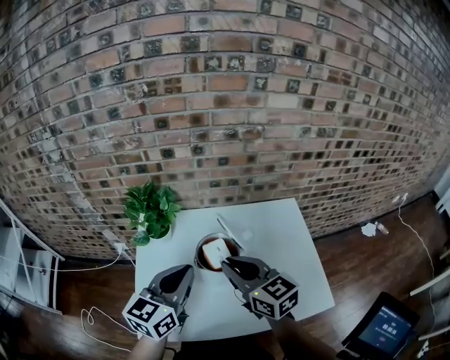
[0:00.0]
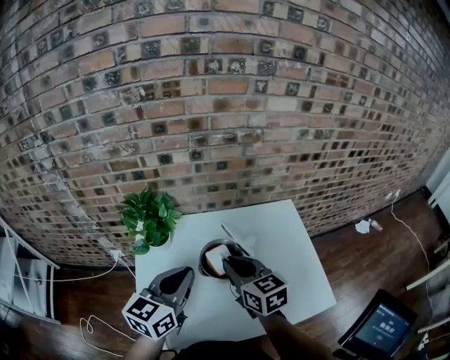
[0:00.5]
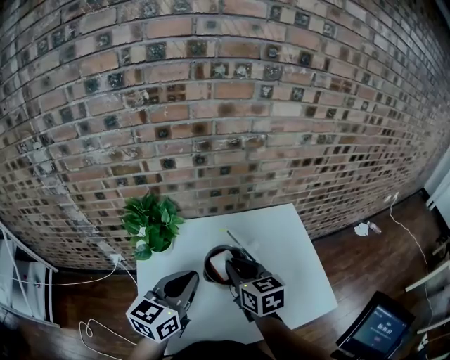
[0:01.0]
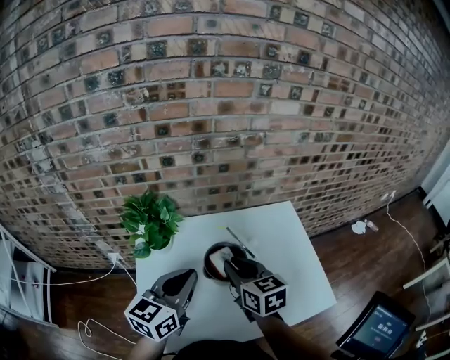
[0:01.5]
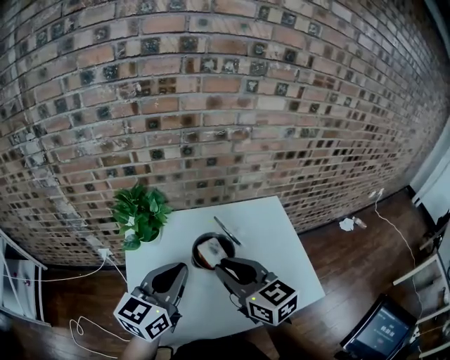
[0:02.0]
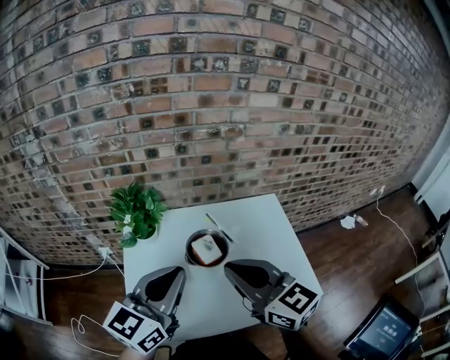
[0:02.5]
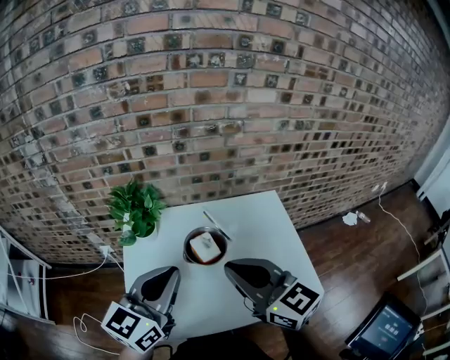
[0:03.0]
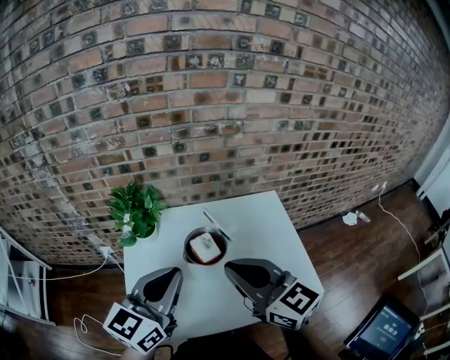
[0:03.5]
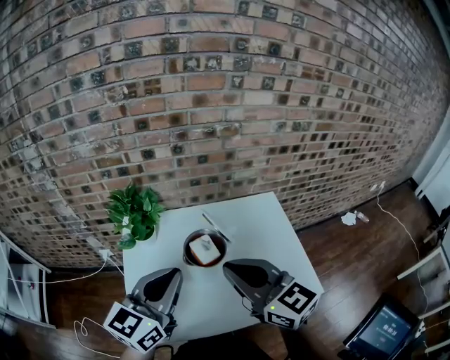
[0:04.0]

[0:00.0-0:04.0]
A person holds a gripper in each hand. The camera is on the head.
0:00.0 to 0:02.0: The right gripper moves about 5 cm forward and comes back.
0:02.0 to 0:04.0: The right gripper moves upward, approximately 5 cm. The left gripper ends up roughly 5 cm from where it was.

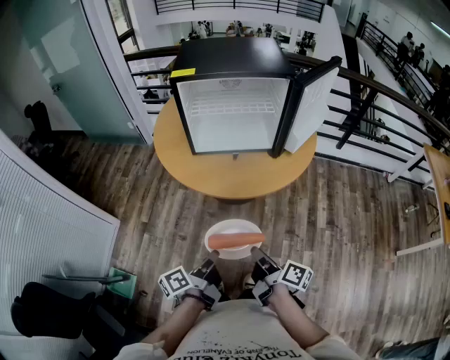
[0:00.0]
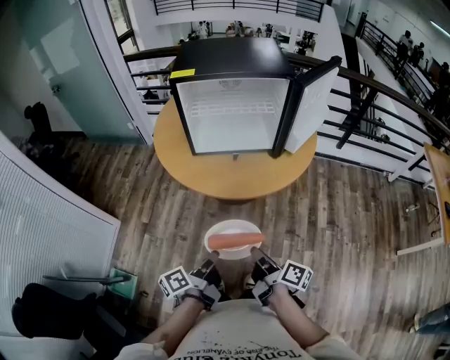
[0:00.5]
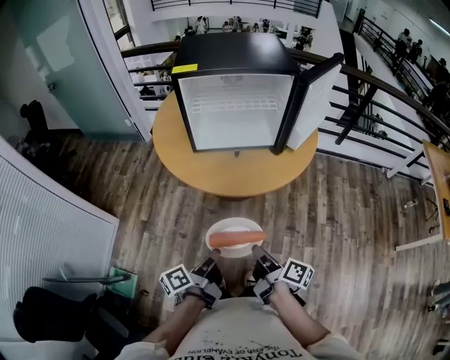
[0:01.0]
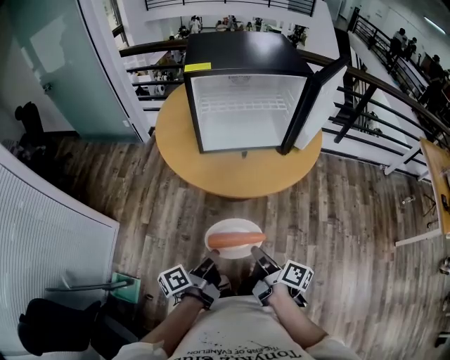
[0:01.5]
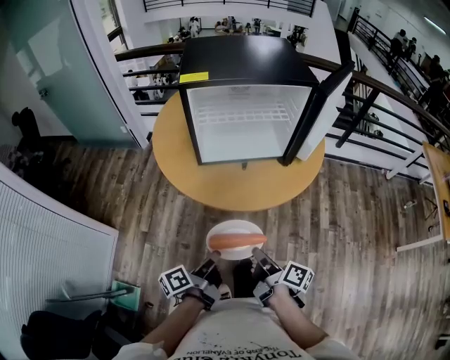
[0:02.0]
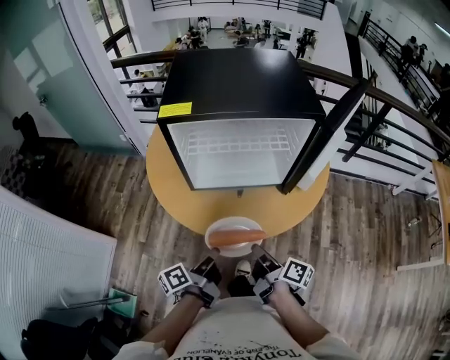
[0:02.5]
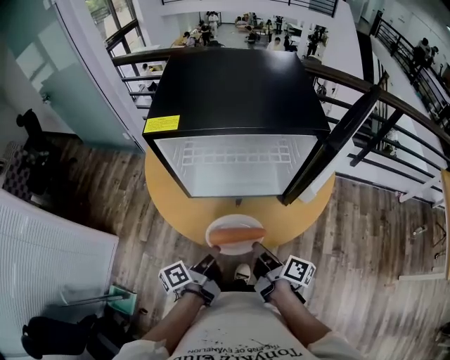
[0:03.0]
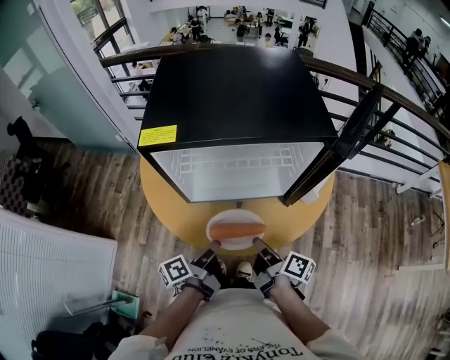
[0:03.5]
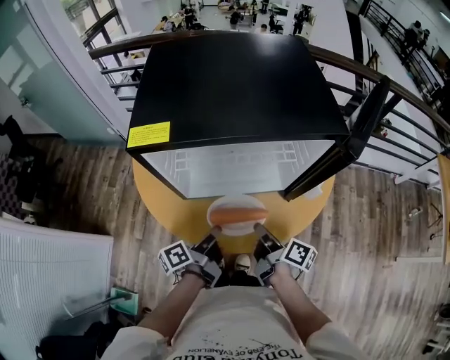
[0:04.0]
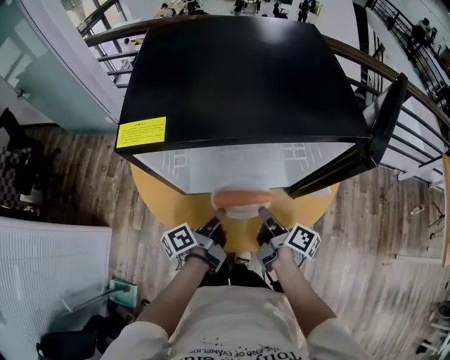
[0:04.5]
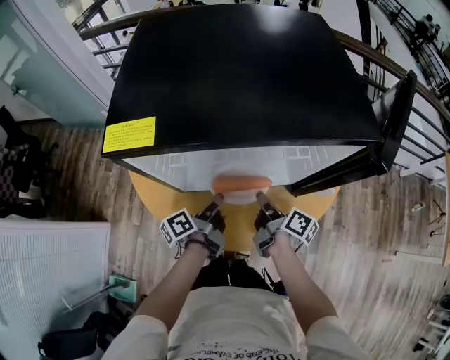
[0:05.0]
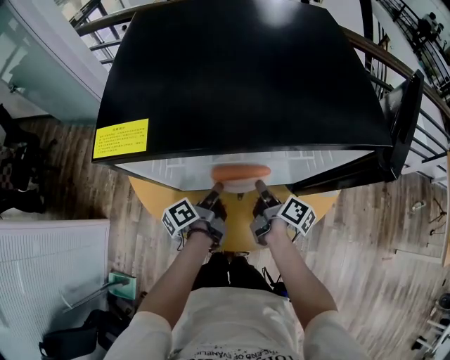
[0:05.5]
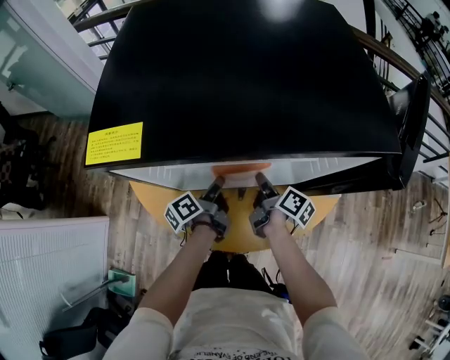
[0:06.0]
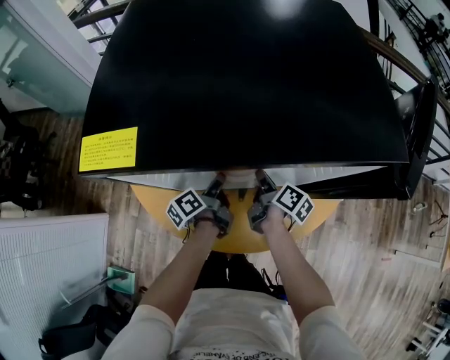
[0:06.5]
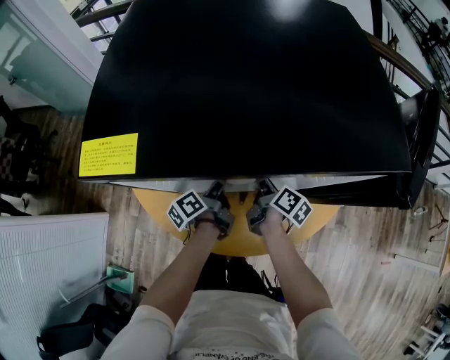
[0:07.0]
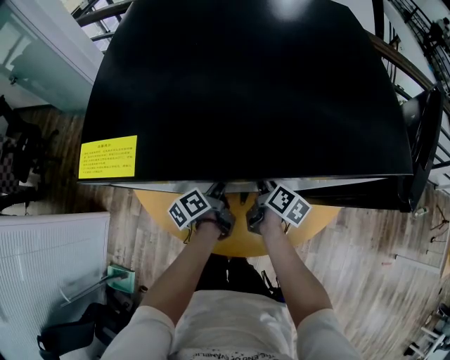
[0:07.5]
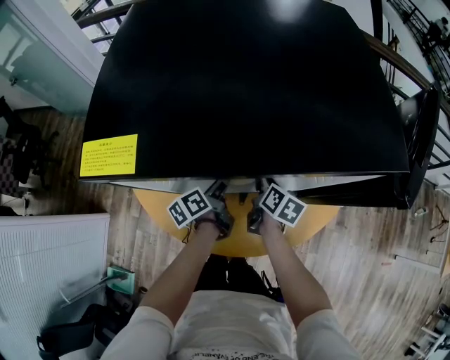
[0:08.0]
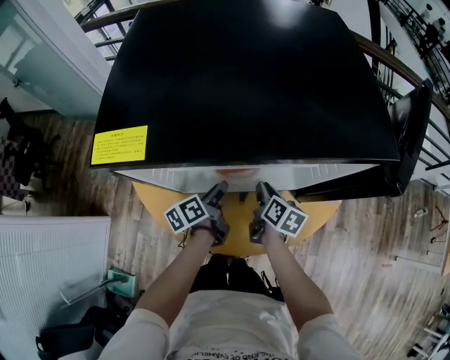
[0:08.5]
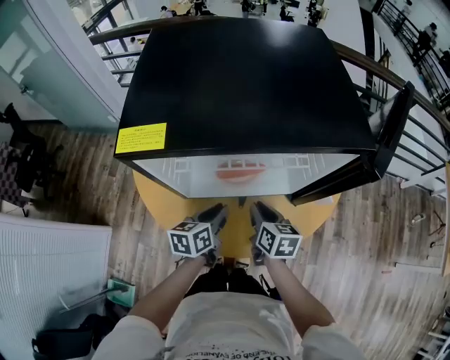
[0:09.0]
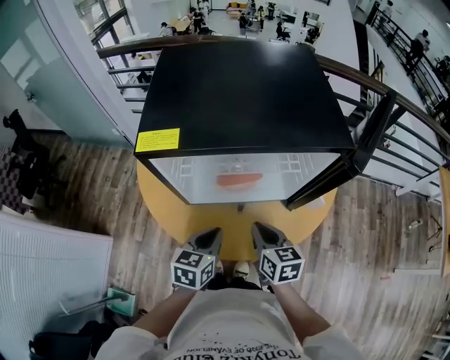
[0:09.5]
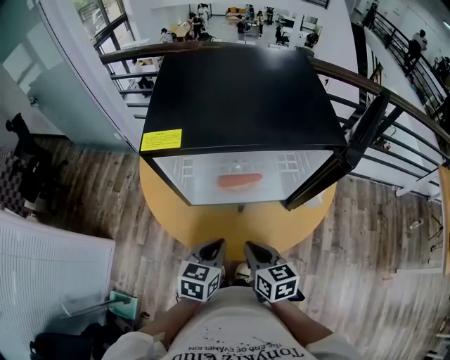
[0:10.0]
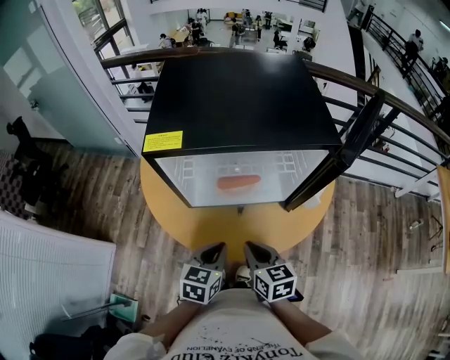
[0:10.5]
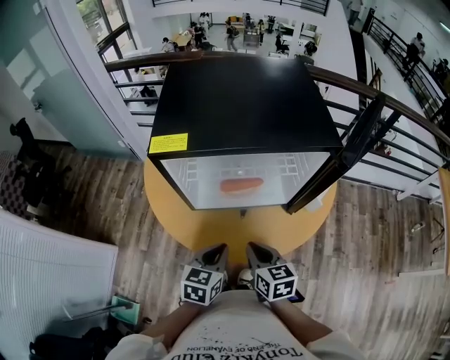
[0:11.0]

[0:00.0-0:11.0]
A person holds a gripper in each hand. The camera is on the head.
0:00.0 to 0:02.0: The right gripper moves roughly 10 cm.
0:02.0 to 0:03.5: The right gripper moves some 25 cm.
0:03.5 to 0:05.5: The right gripper moves roughly 20 cm.
0:05.5 to 0:07.5: The right gripper moves about 5 cm.
0:07.5 to 0:09.0: The right gripper ends up approximately 10 cm from where it was, and rotates about 30 degrees.
0:09.0 to 0:11.0: The right gripper changes place by some 15 cm.

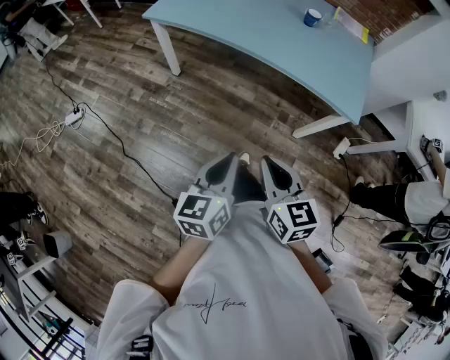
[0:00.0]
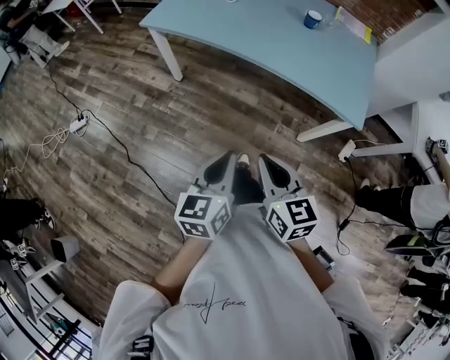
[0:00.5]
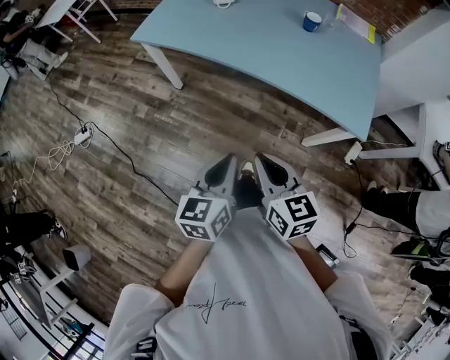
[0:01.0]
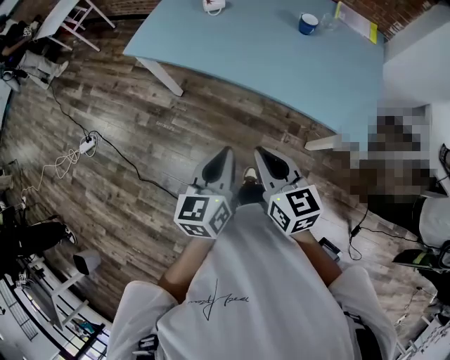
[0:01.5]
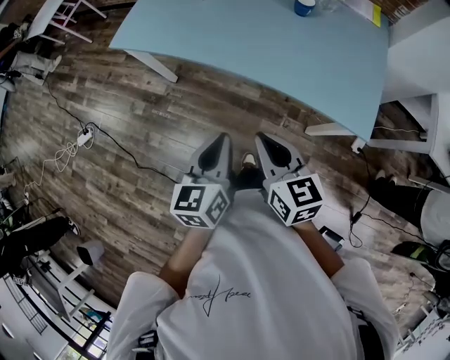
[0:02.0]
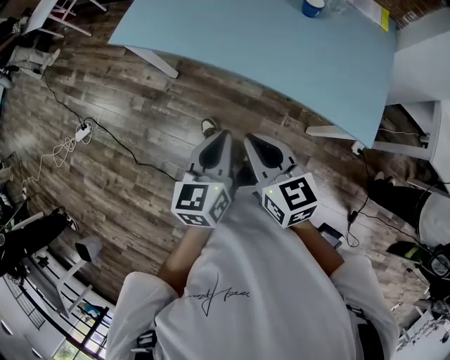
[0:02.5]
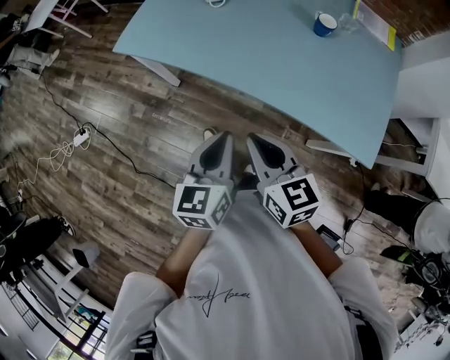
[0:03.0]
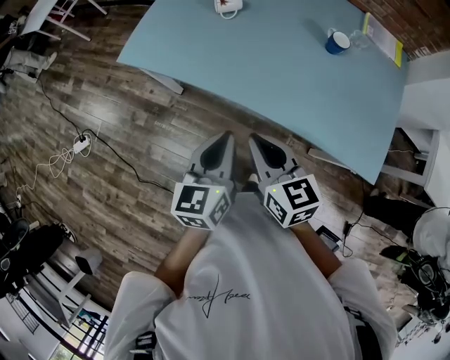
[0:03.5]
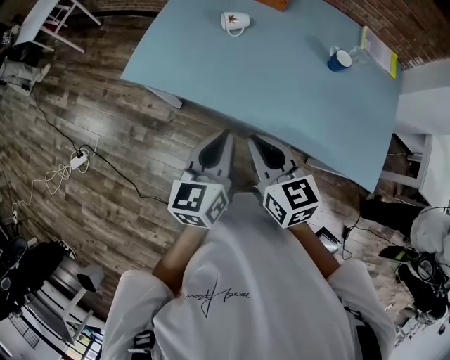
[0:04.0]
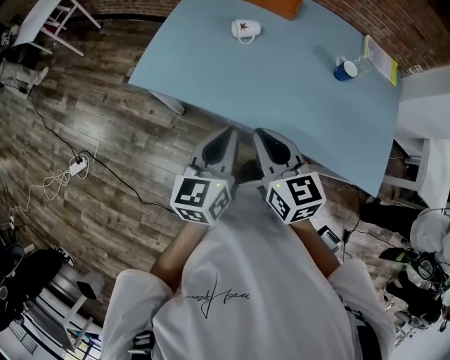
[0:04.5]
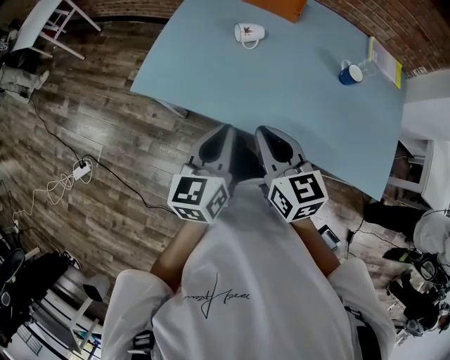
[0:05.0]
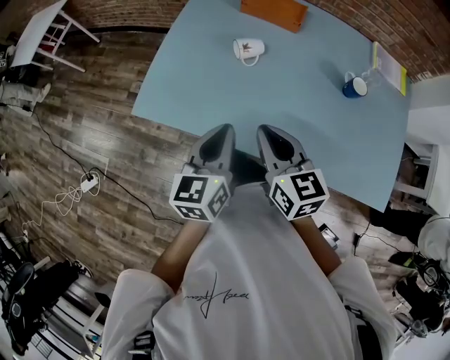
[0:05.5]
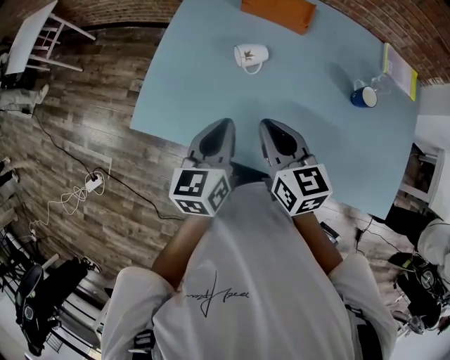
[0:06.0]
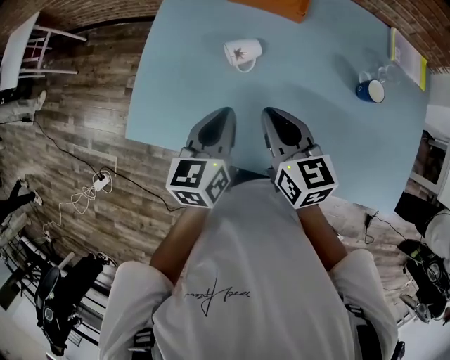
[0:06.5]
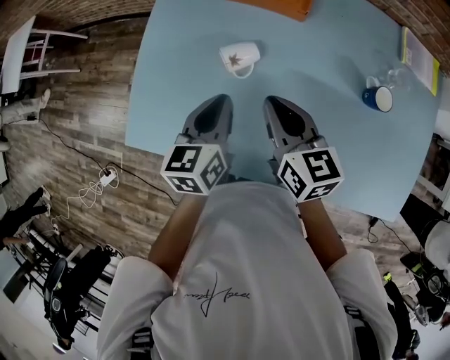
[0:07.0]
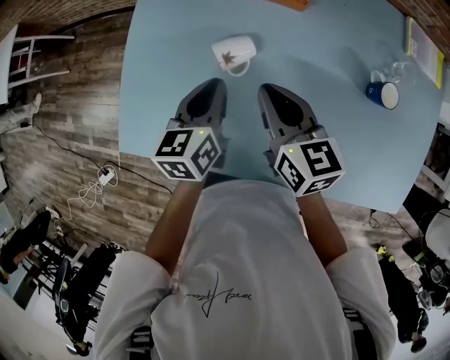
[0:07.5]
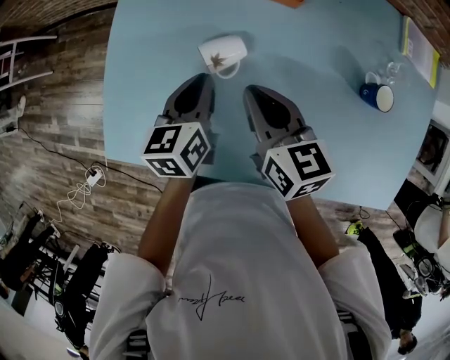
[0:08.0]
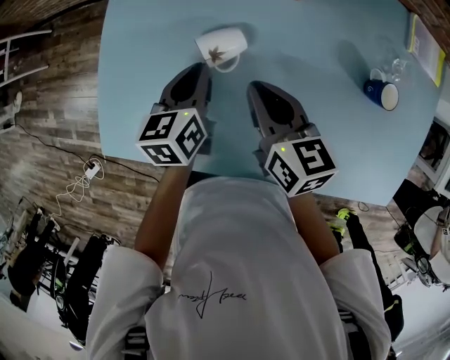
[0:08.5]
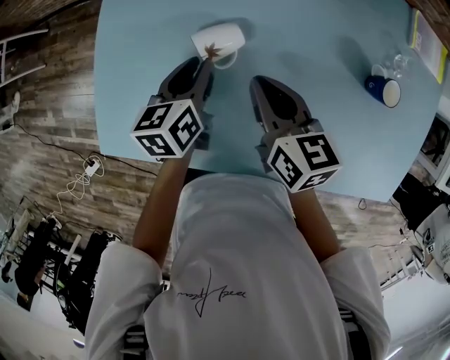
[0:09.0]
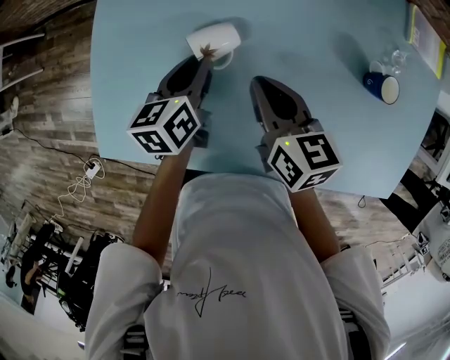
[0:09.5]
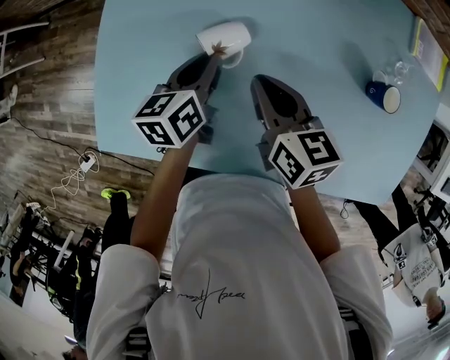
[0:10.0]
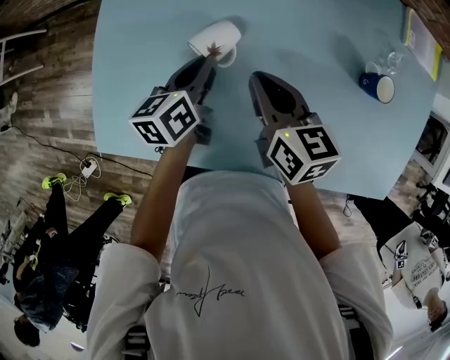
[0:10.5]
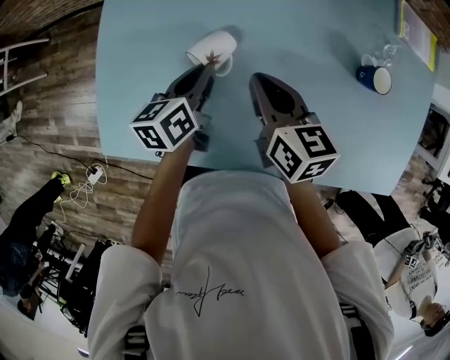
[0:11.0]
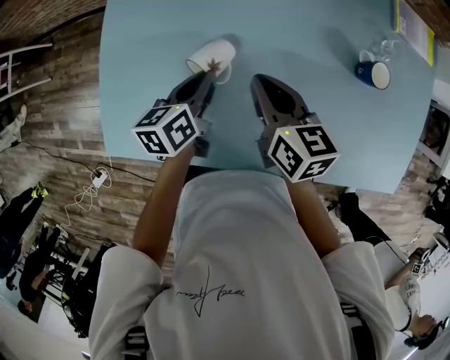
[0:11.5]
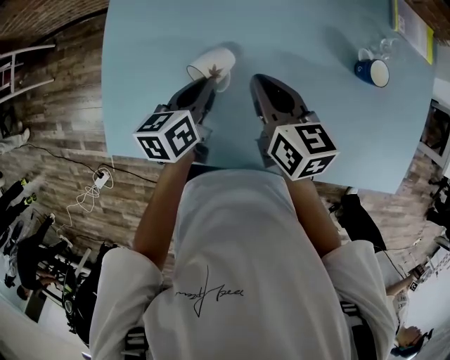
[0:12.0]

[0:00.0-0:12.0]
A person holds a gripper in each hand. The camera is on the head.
0:00.0 to 0:02.0: The two grippers go approximately 20 cm forward.
0:02.0 to 0:04.0: The grippers both shift forward and to the left by about 25 cm.
0:04.0 to 0:06.0: Both grippers travel together forward, about 20 cm.
0:06.0 to 0:08.0: Both grippers move forward and downward, roughly 15 cm.
0:08.0 to 0:10.0: There are only small adjustments of the grippers.
0:10.0 to 0:12.0: The left gripper shifts roughly 5 cm backward.
